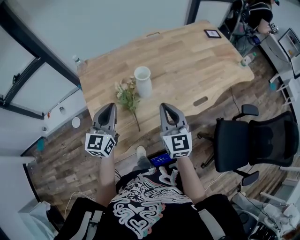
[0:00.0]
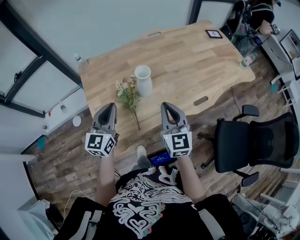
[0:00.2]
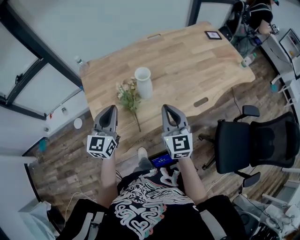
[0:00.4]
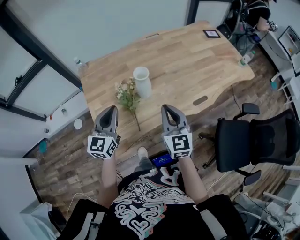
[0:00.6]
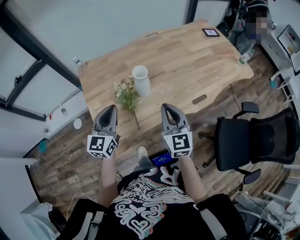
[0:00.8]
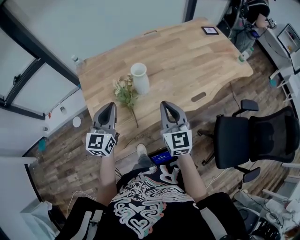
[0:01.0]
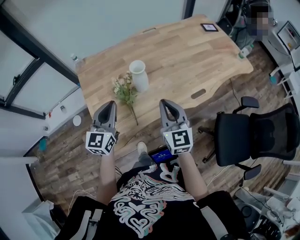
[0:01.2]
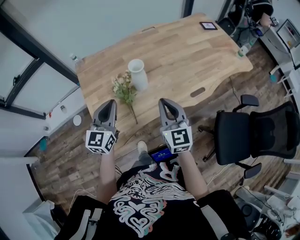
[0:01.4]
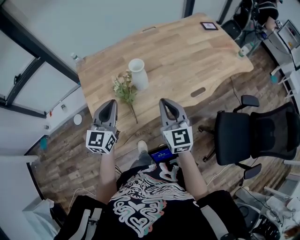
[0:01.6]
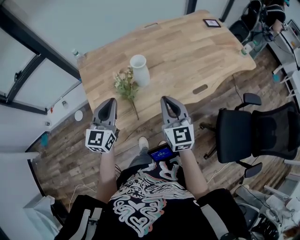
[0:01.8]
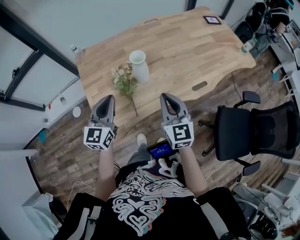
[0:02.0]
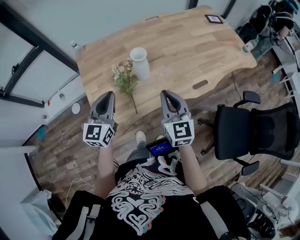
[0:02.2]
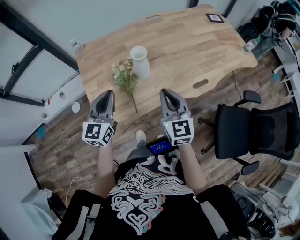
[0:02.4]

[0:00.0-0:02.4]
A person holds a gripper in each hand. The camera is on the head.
0:00.0 to 0:02.4: There are only small adjustments of the grippers.

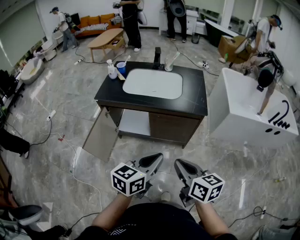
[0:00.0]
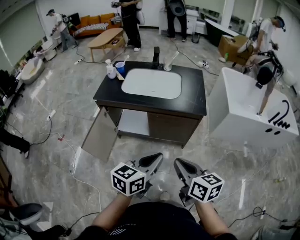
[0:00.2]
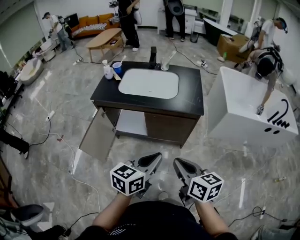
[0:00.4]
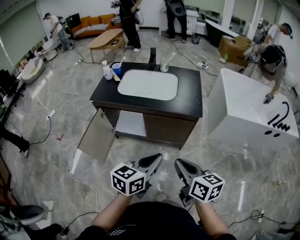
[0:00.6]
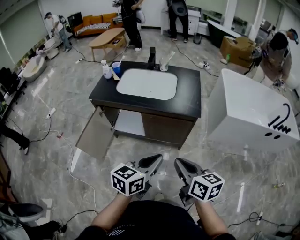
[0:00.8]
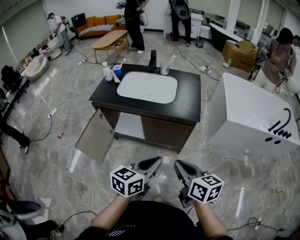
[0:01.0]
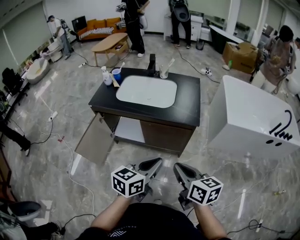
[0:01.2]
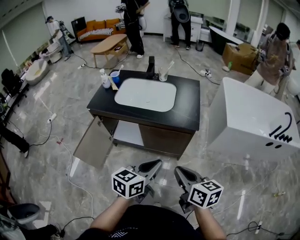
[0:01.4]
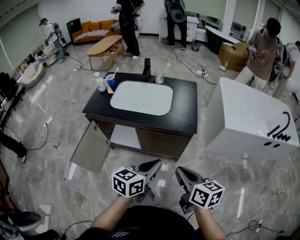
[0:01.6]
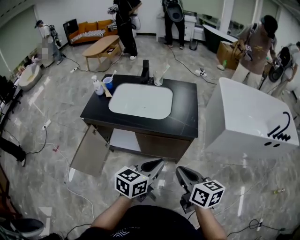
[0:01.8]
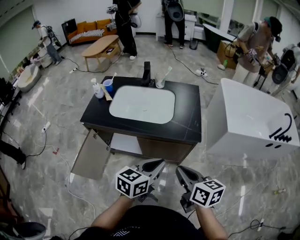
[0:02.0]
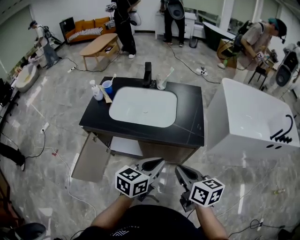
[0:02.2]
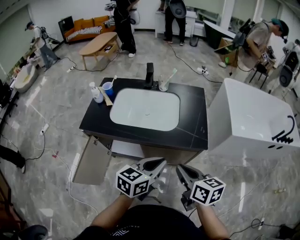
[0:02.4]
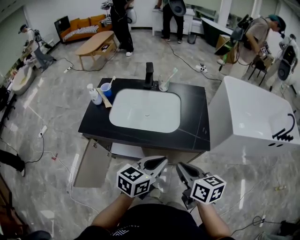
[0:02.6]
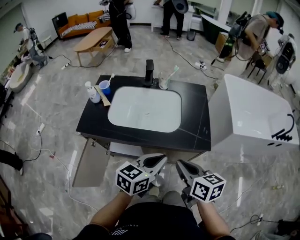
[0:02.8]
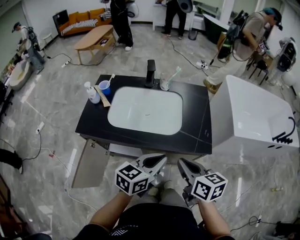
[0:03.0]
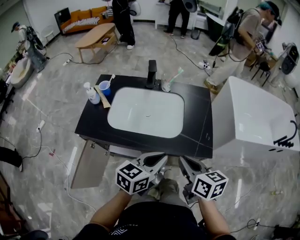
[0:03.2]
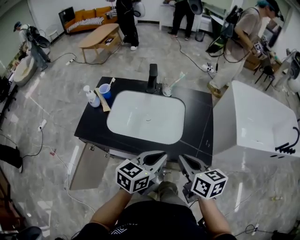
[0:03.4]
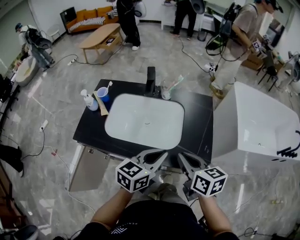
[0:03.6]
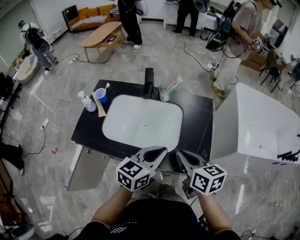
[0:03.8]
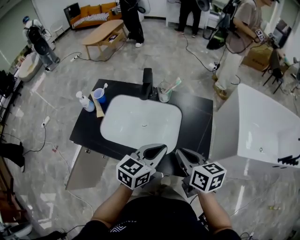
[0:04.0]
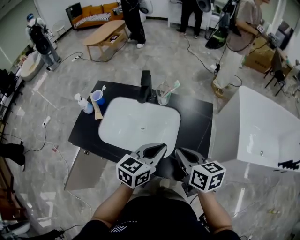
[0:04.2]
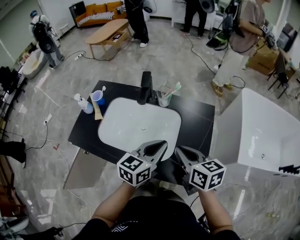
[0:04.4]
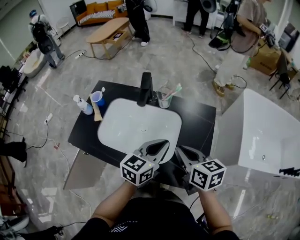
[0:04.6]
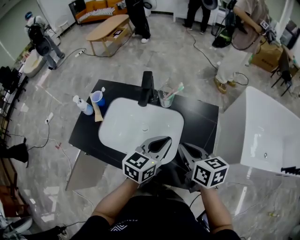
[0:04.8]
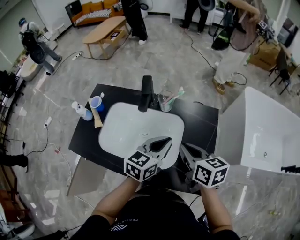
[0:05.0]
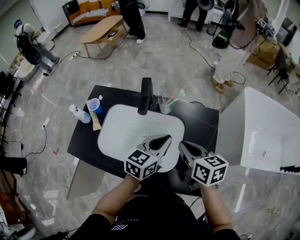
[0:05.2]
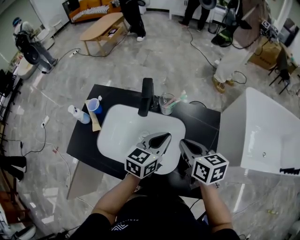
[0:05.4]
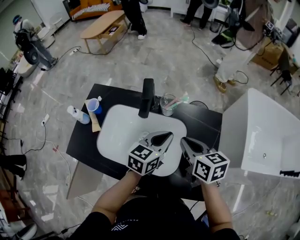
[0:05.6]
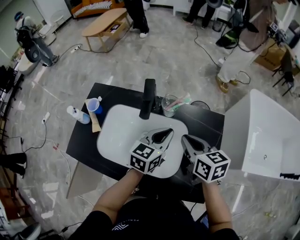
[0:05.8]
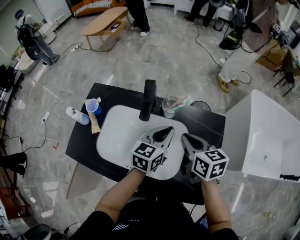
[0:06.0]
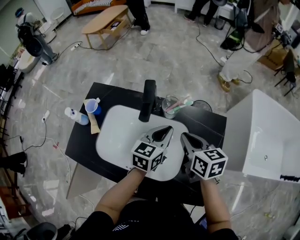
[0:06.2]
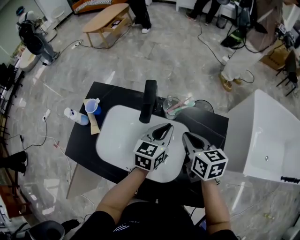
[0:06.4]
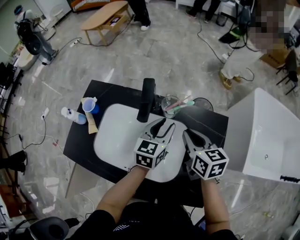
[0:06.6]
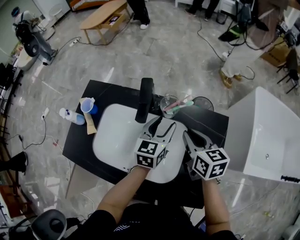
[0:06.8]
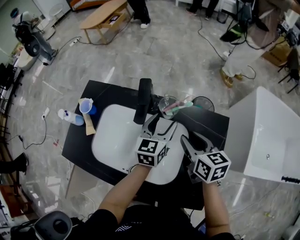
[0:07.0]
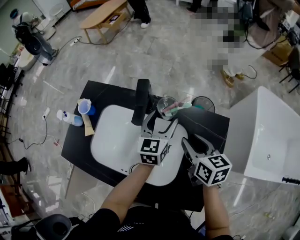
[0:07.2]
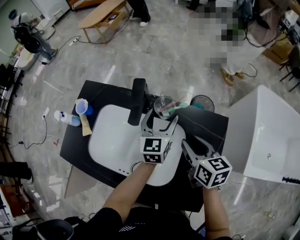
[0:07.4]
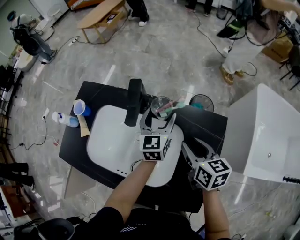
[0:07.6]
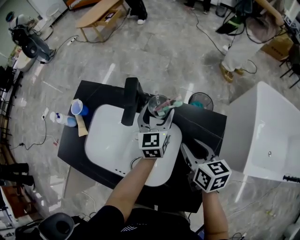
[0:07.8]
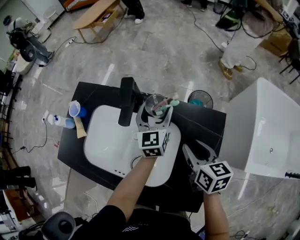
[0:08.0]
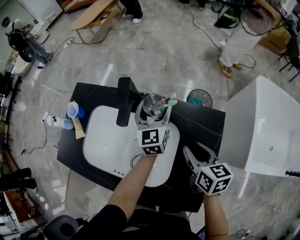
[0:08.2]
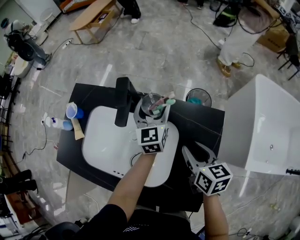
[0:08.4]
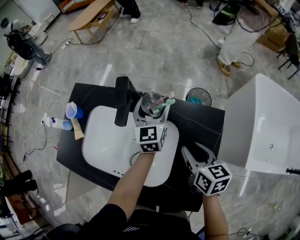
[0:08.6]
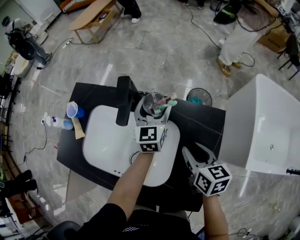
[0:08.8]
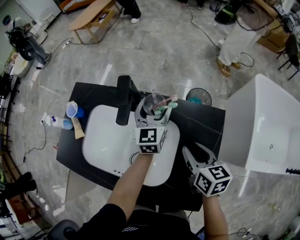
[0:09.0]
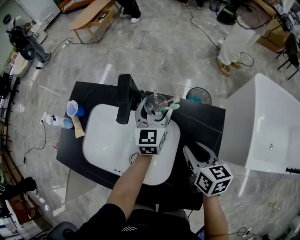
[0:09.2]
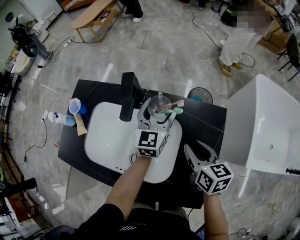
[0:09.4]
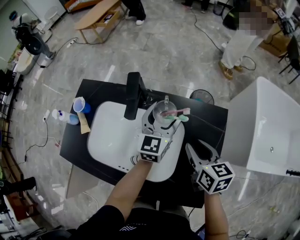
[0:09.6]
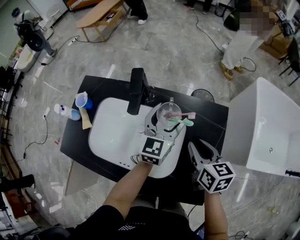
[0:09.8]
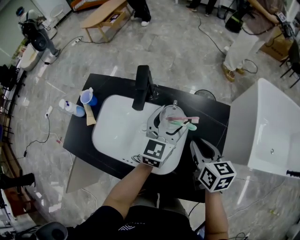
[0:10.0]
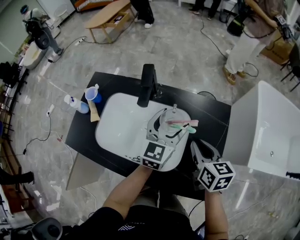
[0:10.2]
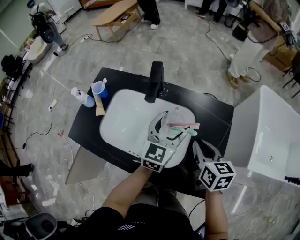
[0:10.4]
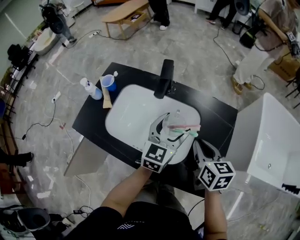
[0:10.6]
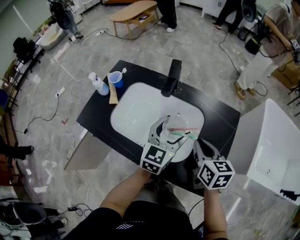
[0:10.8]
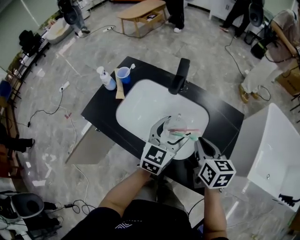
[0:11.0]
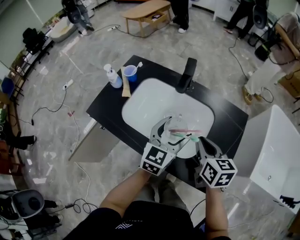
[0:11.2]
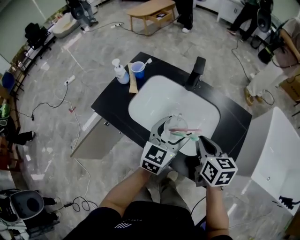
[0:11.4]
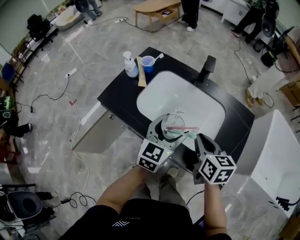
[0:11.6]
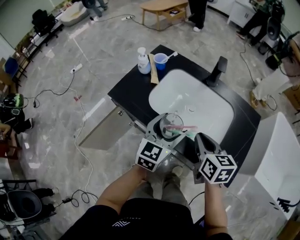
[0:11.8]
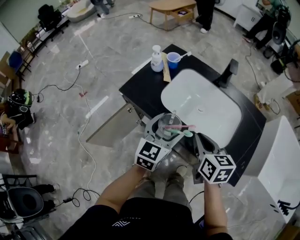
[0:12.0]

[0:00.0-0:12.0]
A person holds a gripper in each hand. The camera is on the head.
0:00.0 to 0:01.6: The right gripper goes approximately 15 cm to the right and forward. The left gripper heads forward and to the right, covering approximately 15 cm.
0:01.6 to 0:03.0: The grippers both shift forward and to the left by roughly 20 cm.
0:03.0 to 0:04.4: The two grippers go roughly 20 cm forward.
0:04.4 to 0:06.0: Both grippers move forward, about 15 cm.
0:06.0 to 0:07.6: The right gripper travels to the right by about 5 cm, and opens up; the left gripper heads forward, covering roughly 10 cm, swivels about 30 degrees, and opens.
0:07.6 to 0:09.0: The grippers move only a little.
0:09.0 to 0:10.4: The left gripper heads backward, covering roughly 15 cm; the right gripper goes approximately 5 cm backward.
0:10.4 to 0:12.0: The right gripper moves to the left, about 25 cm. The left gripper moves to the left and backward, some 35 cm.

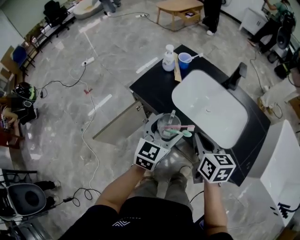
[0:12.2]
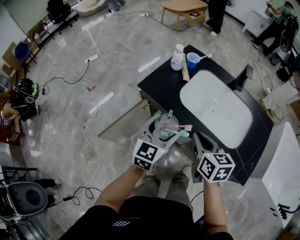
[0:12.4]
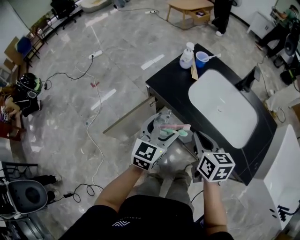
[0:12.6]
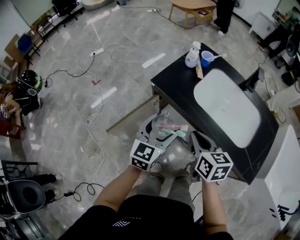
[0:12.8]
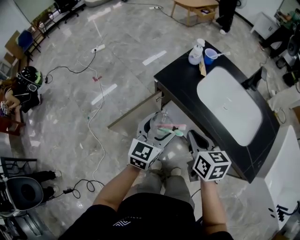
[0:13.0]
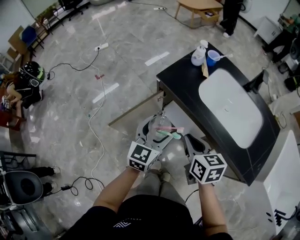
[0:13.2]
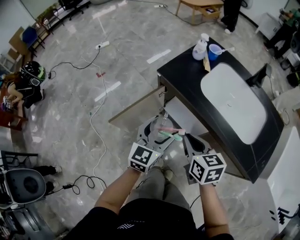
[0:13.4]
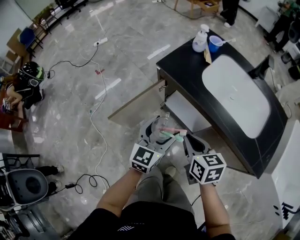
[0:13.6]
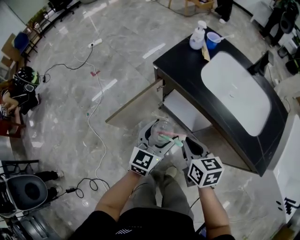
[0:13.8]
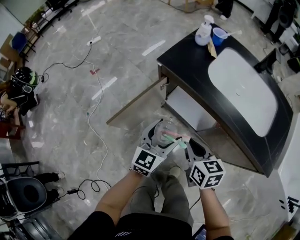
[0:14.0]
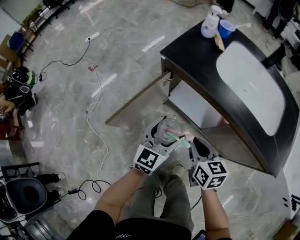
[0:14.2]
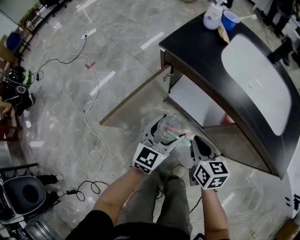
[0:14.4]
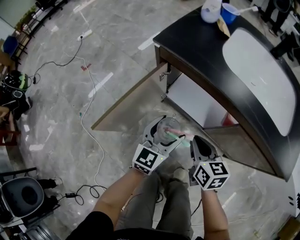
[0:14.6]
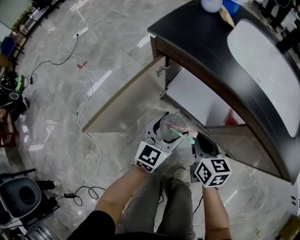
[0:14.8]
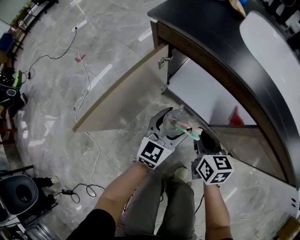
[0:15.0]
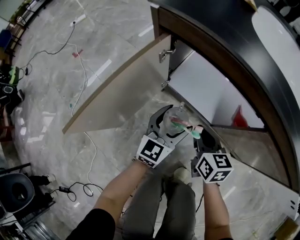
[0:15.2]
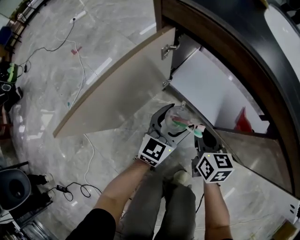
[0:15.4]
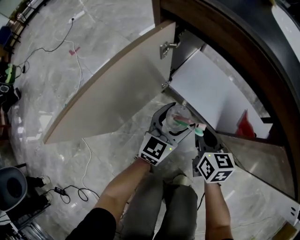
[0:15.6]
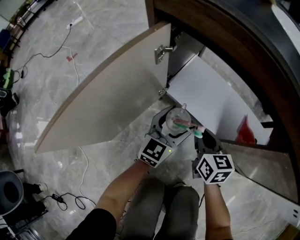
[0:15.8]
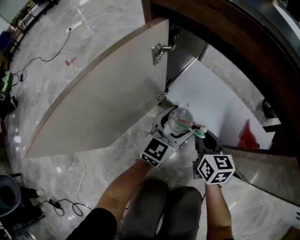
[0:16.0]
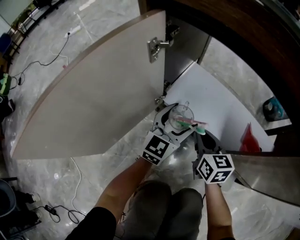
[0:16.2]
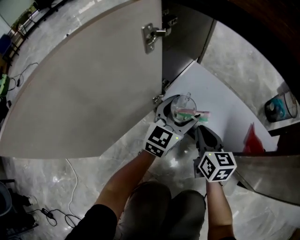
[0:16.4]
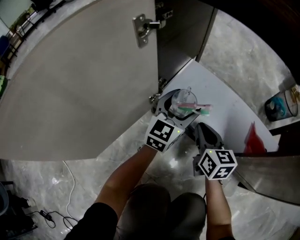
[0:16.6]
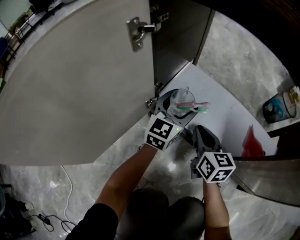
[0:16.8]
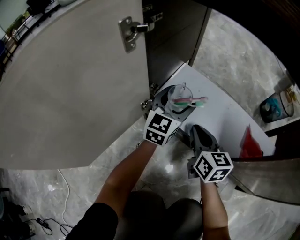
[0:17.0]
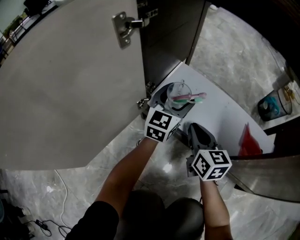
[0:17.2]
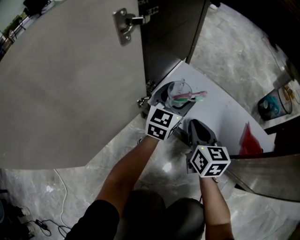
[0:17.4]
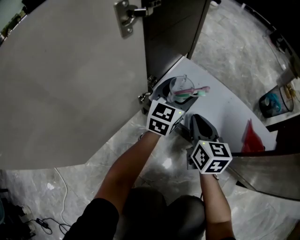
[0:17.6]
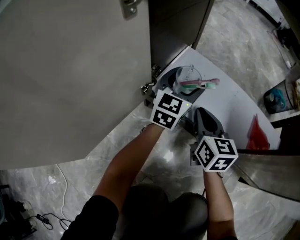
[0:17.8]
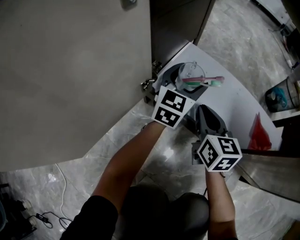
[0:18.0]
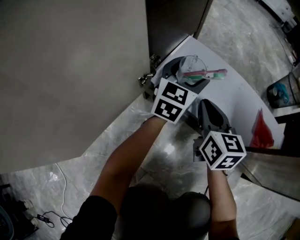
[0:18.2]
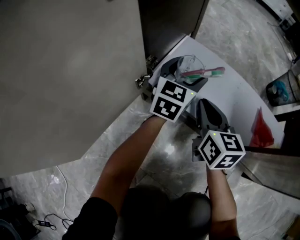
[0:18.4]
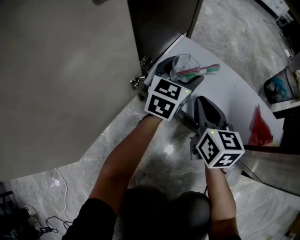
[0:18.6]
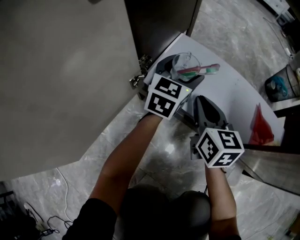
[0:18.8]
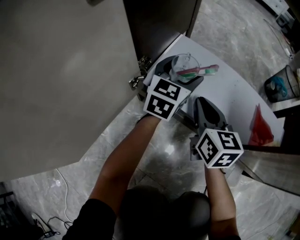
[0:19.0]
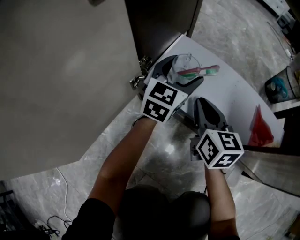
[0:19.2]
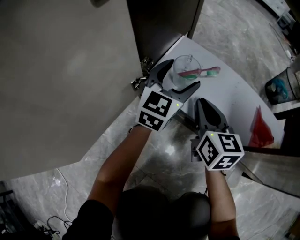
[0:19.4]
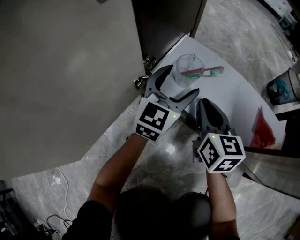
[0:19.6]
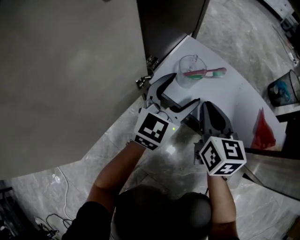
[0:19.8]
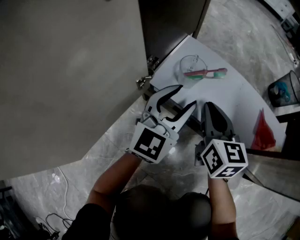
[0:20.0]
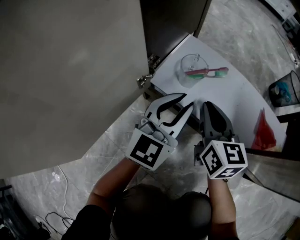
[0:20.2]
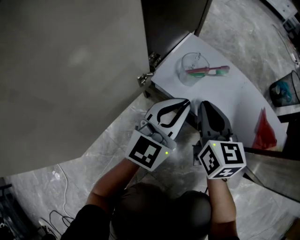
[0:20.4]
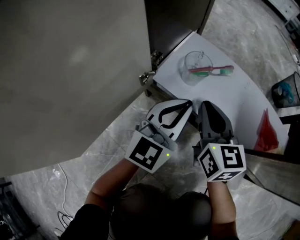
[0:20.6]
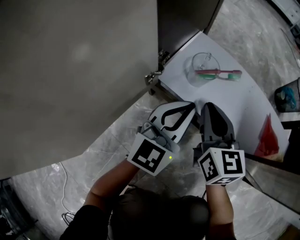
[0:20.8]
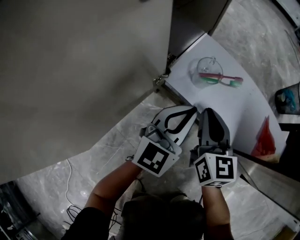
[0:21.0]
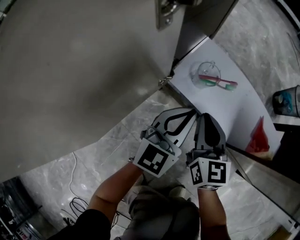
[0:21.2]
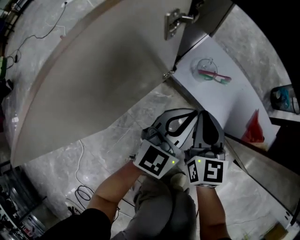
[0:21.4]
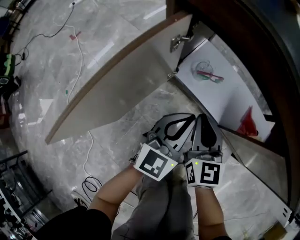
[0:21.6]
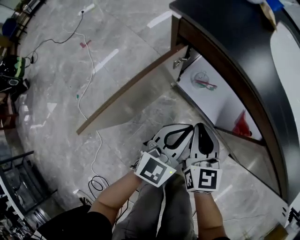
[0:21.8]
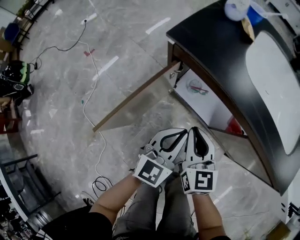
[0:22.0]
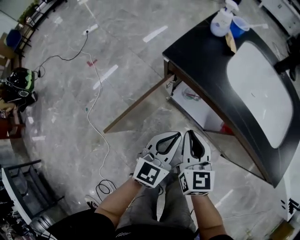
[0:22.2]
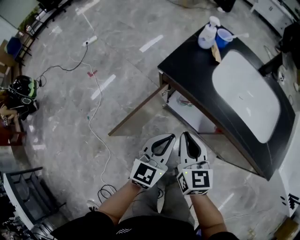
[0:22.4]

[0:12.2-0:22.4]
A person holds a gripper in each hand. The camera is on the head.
0:12.2 to 0:13.6: The left gripper goes some 20 cm to the left, backward and downward. Meanwhile the right gripper moves to the left, downward and backward, some 20 cm.
0:13.6 to 0:15.2: The two grippers go some 30 cm downward.
0:15.2 to 0:16.6: The left gripper is displaced forward and downward by about 25 cm. The right gripper is displaced downward and forward by approximately 20 cm.
0:16.6 to 0:18.0: The left gripper shifts approximately 5 cm forward.
0:18.0 to 0:19.4: The grippers make only small movements.
0:19.4 to 0:21.0: The right gripper moves roughly 5 cm, while the left gripper is displaced backward by approximately 10 cm, and closes.
0:21.0 to 0:22.4: The grippers both shift upward by approximately 50 cm.
